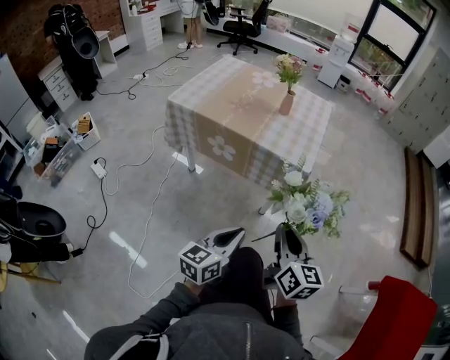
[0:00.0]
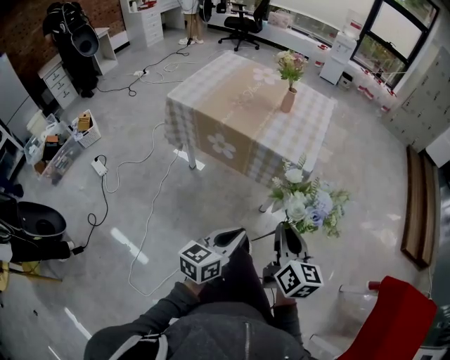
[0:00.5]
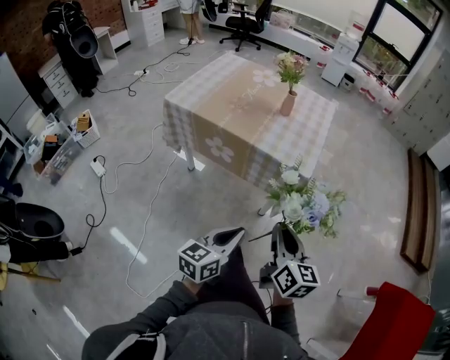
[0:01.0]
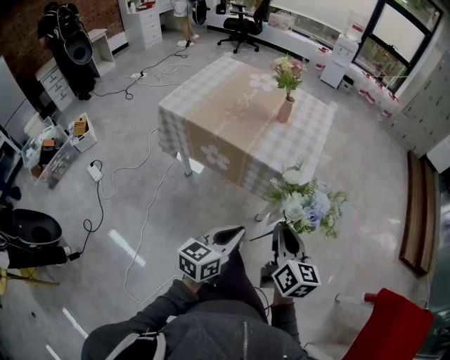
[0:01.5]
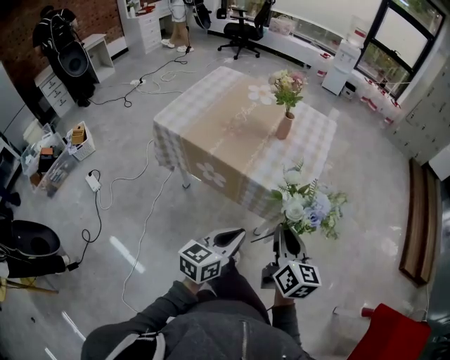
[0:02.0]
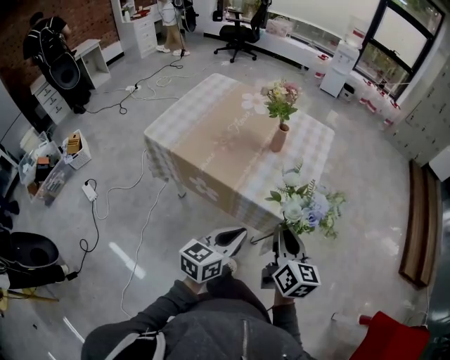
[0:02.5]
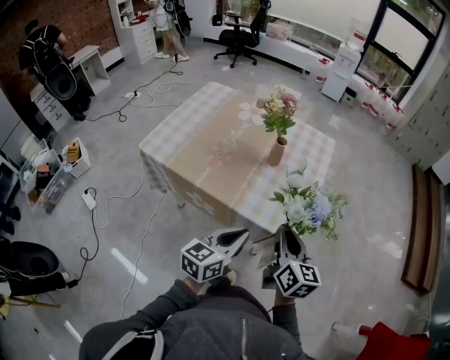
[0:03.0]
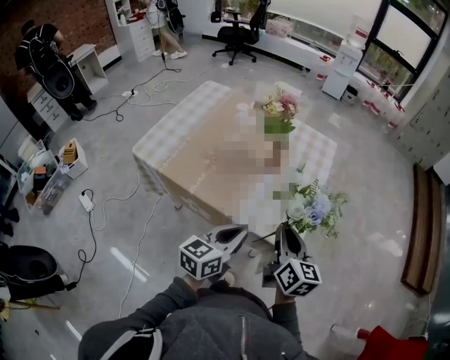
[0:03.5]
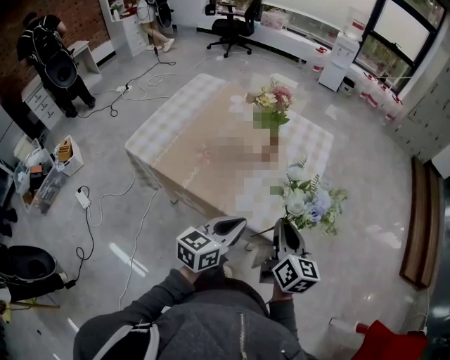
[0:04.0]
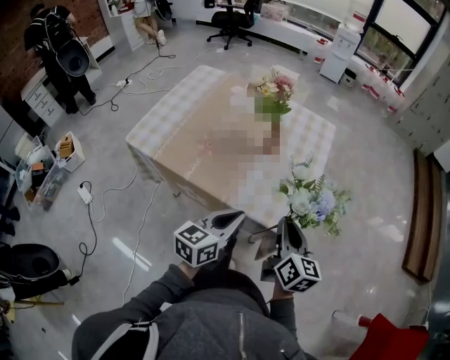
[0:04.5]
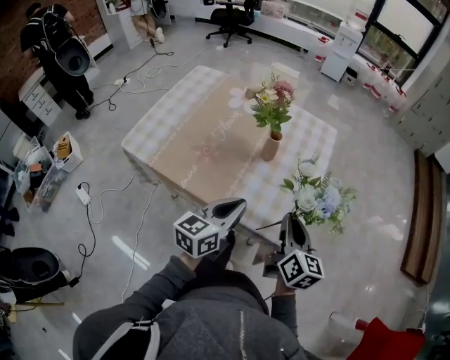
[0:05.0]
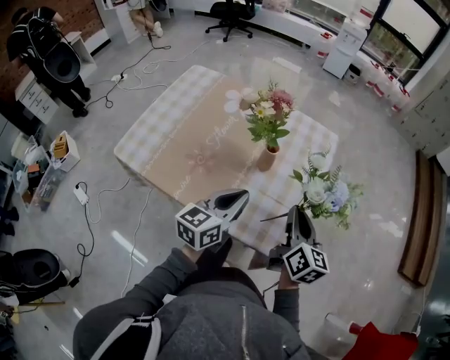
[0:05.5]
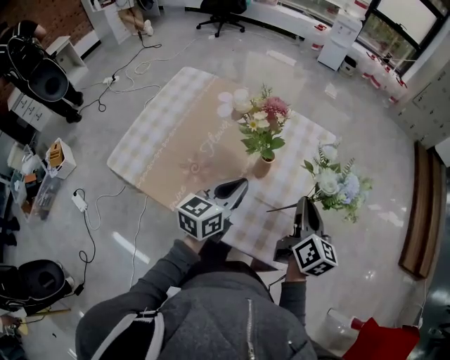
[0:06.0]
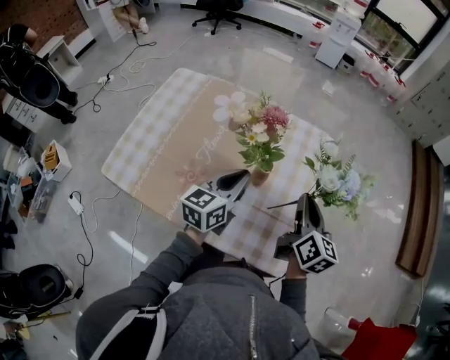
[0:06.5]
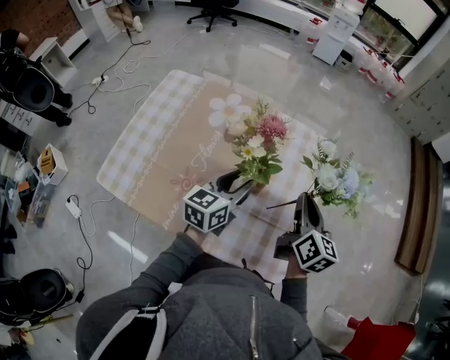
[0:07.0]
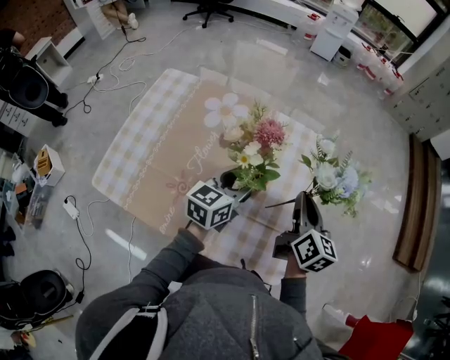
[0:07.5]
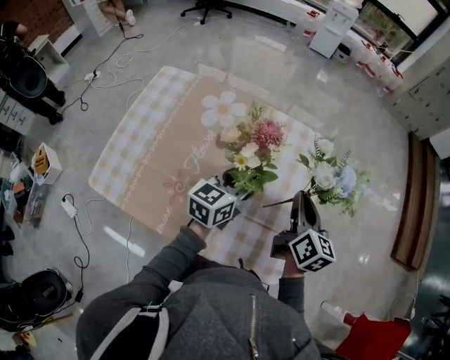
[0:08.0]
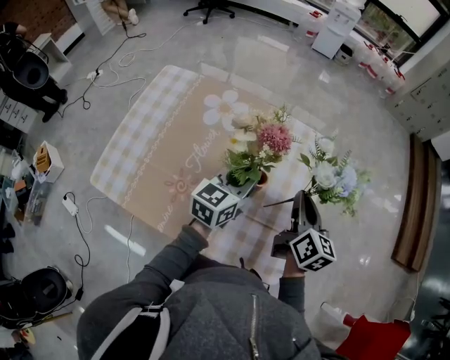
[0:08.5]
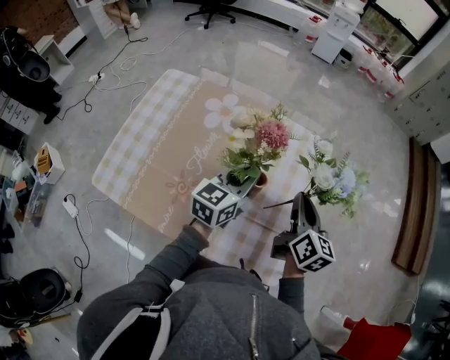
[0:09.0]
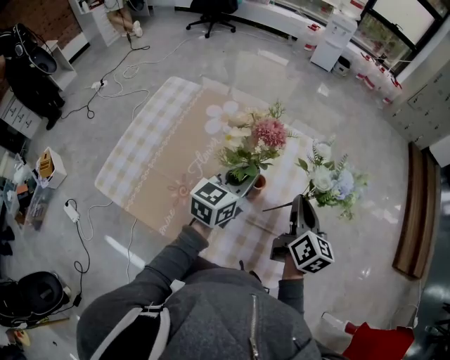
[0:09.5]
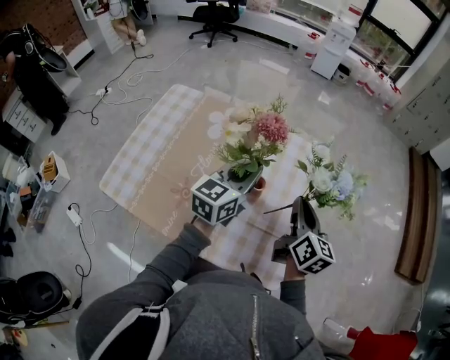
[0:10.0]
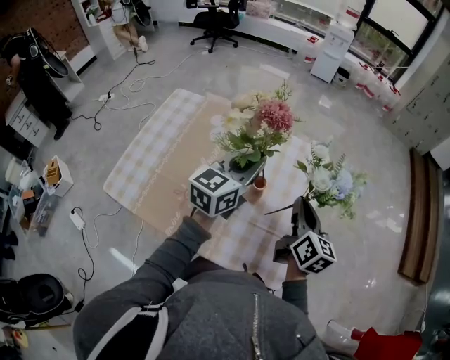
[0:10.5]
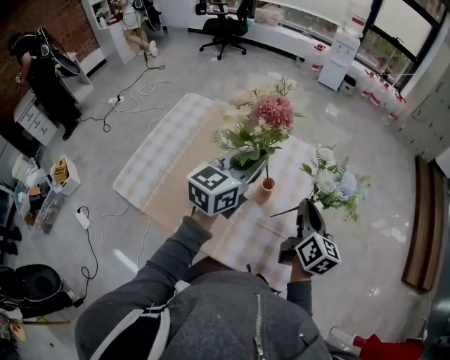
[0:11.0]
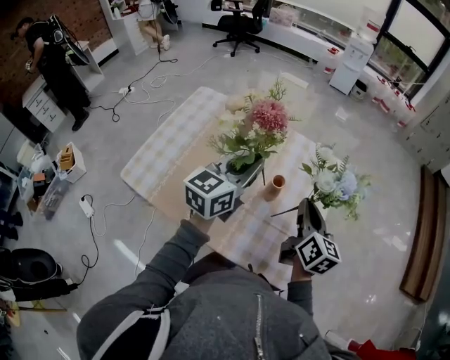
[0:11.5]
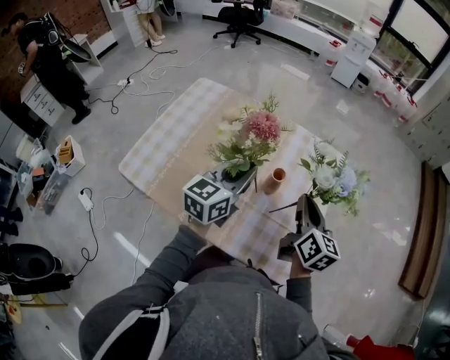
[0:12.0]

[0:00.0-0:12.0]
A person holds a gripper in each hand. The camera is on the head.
0:00.0 to 0:02.0: Both grippers travel together forward, approximately 15 cm.
0:02.0 to 0:04.0: Both grippers move forward, about 20 cm.
0:04.0 to 0:06.0: Both grippers travel together forward, roughly 20 cm.
0:06.0 to 0:08.0: The two grippers go approximately 10 cm forward. The left gripper opens its fingers.
0:08.0 to 0:10.0: The left gripper shifts approximately 5 cm upward, and closes its fingers.
0:10.0 to 0:12.0: The left gripper moves backward and to the left, roughly 10 cm, and reaches roughly 10 cm upward, then returns.

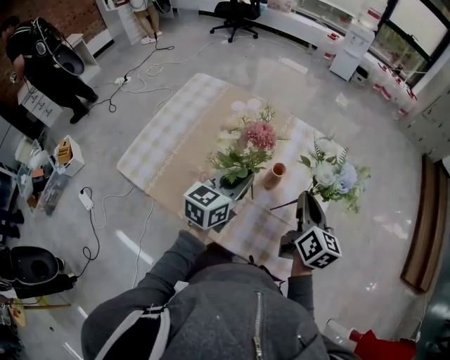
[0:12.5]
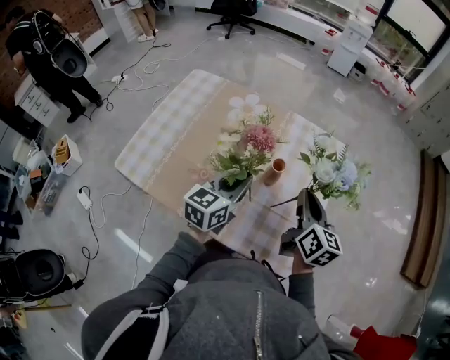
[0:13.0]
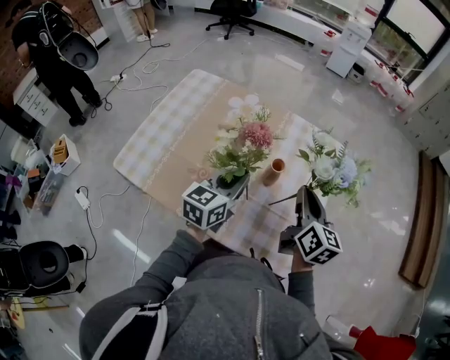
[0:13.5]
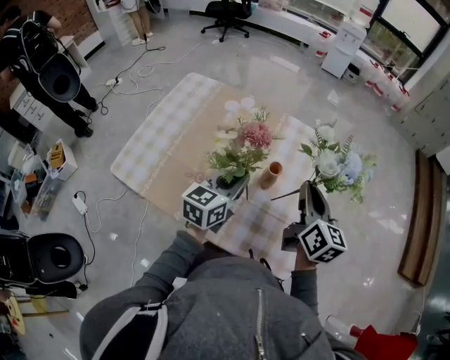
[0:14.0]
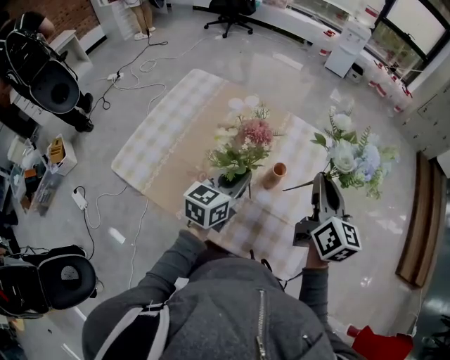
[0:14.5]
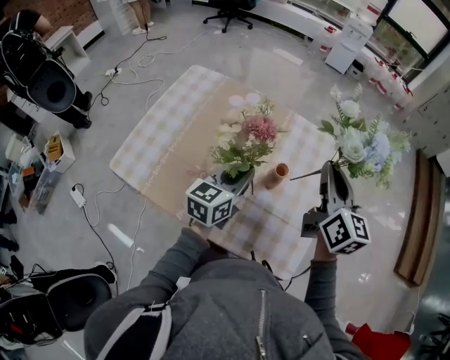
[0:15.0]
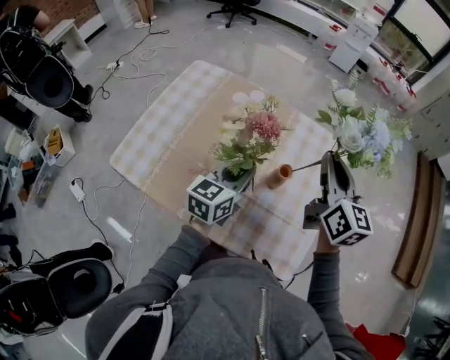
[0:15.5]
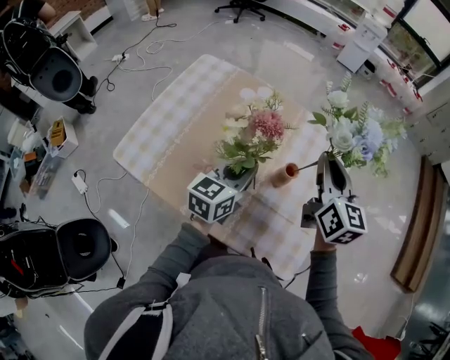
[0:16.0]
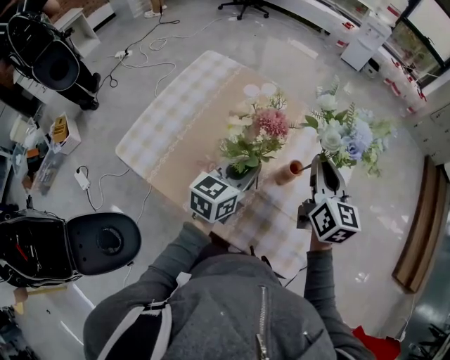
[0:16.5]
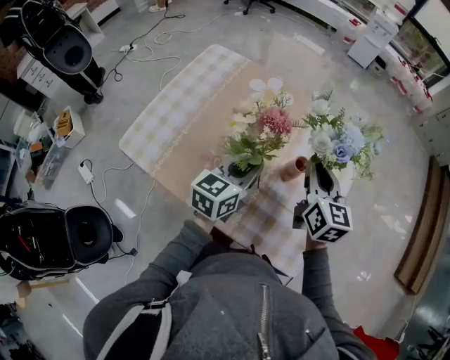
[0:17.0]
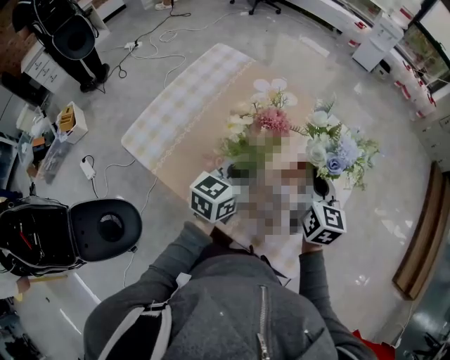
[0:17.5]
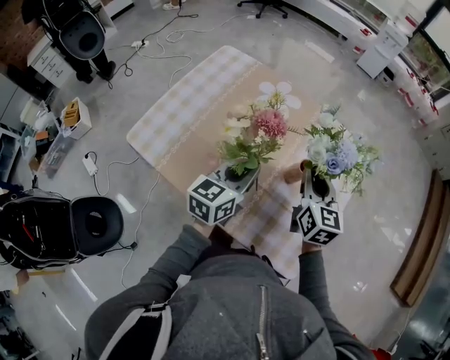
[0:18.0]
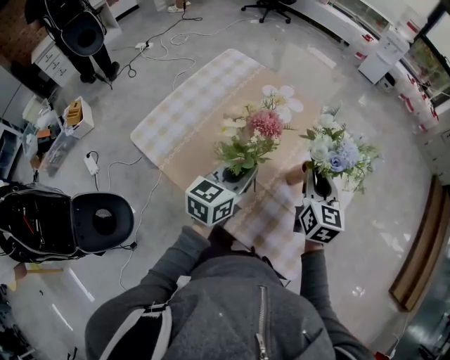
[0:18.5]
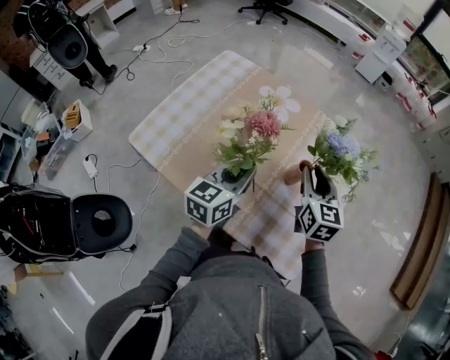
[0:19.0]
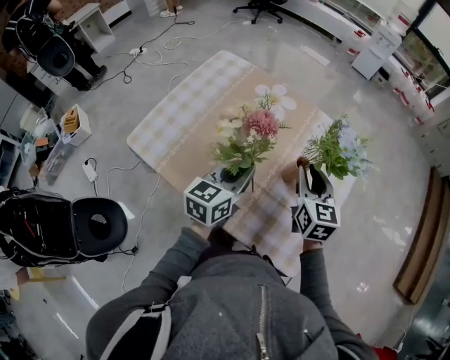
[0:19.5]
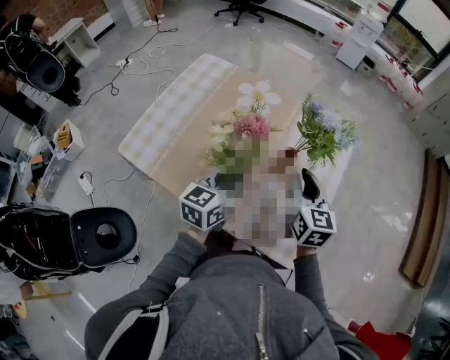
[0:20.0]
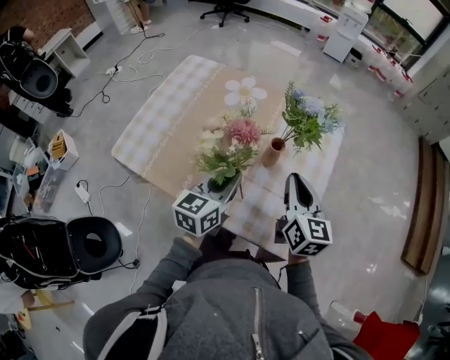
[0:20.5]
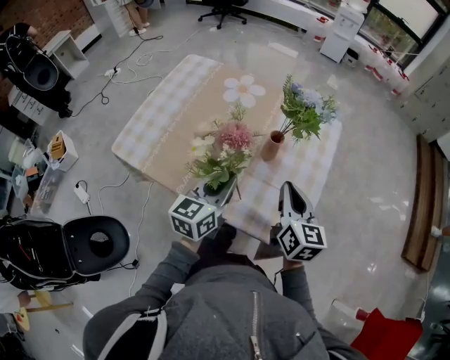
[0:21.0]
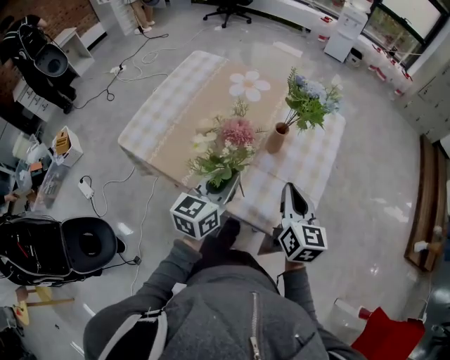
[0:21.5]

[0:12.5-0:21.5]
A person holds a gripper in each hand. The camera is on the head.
0:12.5 to 0:14.5: The right gripper shifts some 10 cm upward.
0:14.5 to 0:17.0: The right gripper heads to the left and downward, covering some 10 cm.
0:17.0 to 0:19.5: The grippers make only small movements.
0:19.5 to 0:21.5: The right gripper goes some 15 cm backward, while the left gripper travels backward by roughly 10 cm.

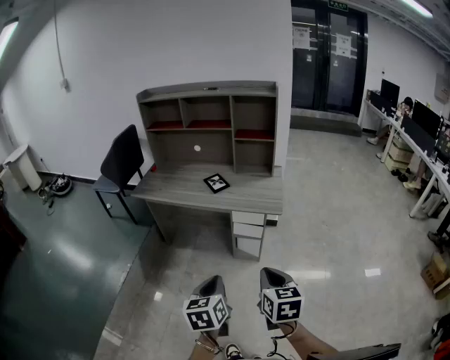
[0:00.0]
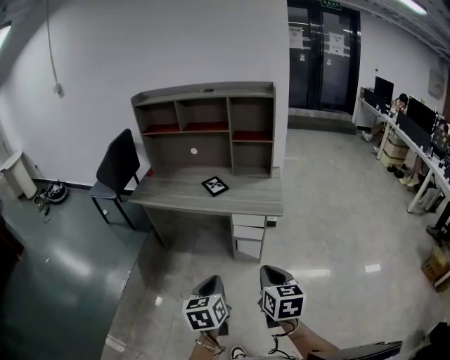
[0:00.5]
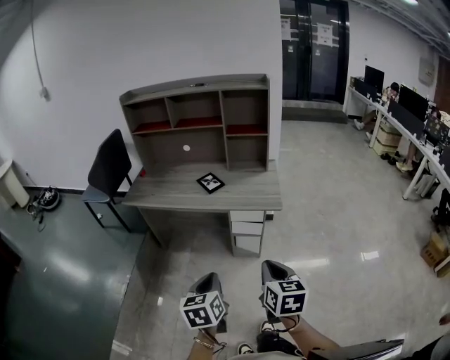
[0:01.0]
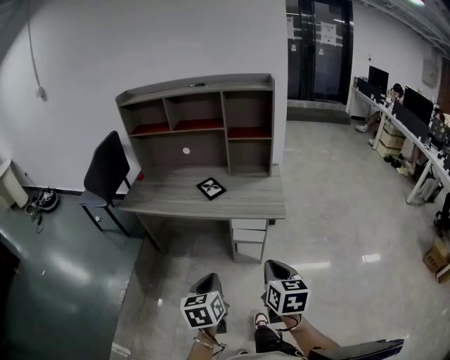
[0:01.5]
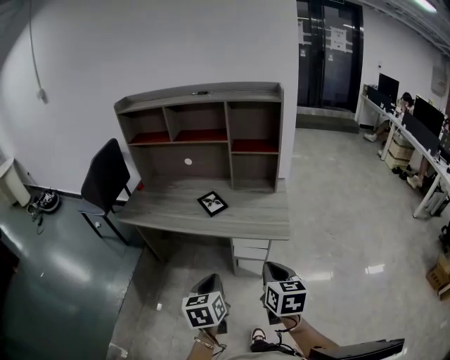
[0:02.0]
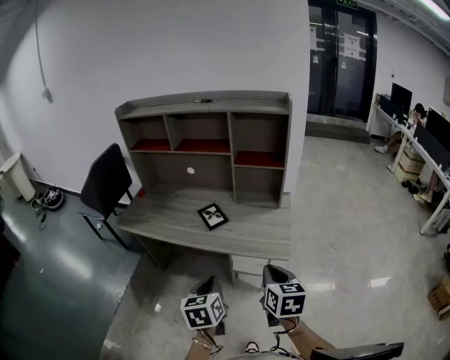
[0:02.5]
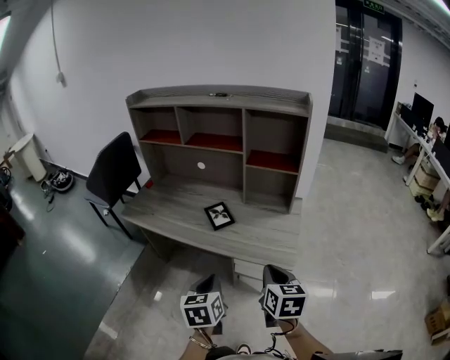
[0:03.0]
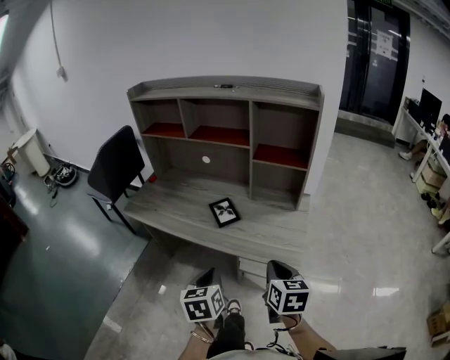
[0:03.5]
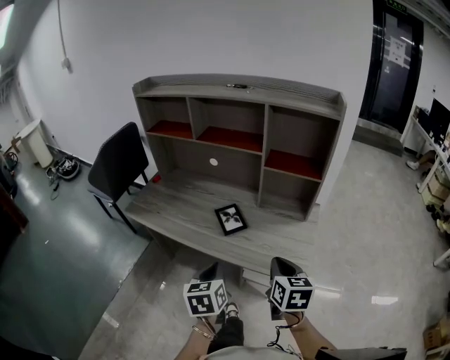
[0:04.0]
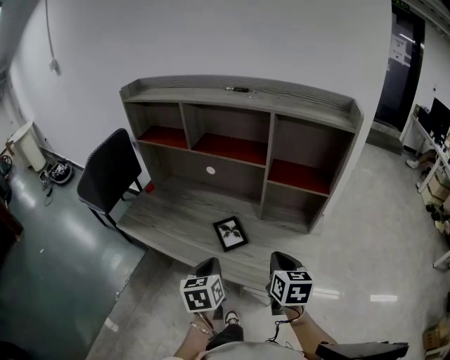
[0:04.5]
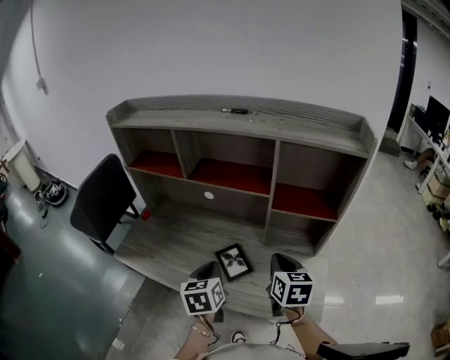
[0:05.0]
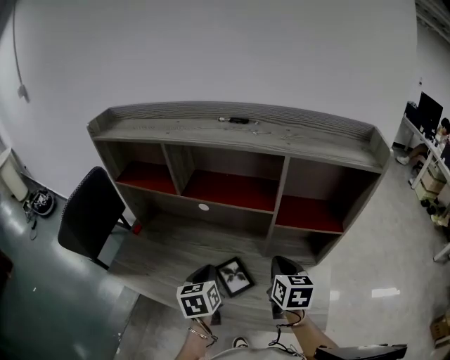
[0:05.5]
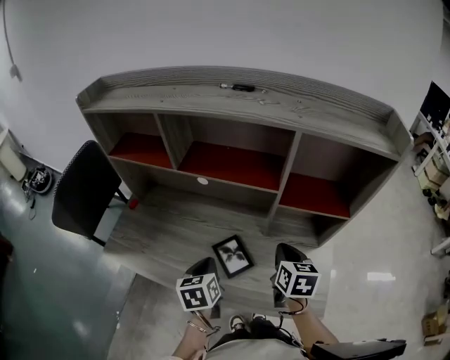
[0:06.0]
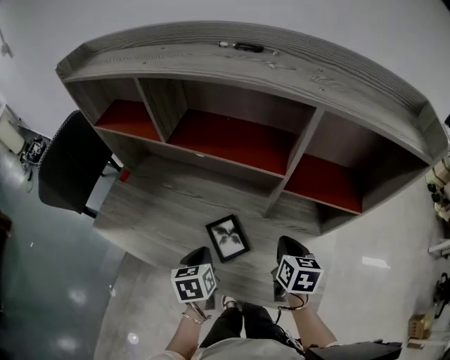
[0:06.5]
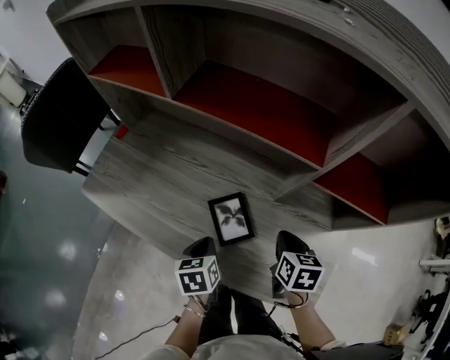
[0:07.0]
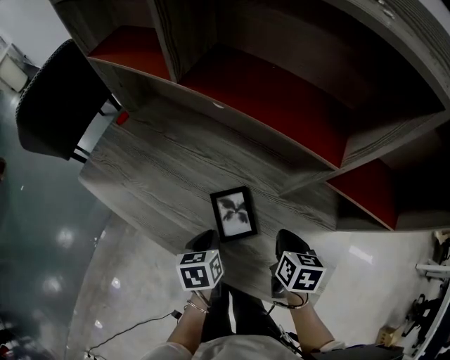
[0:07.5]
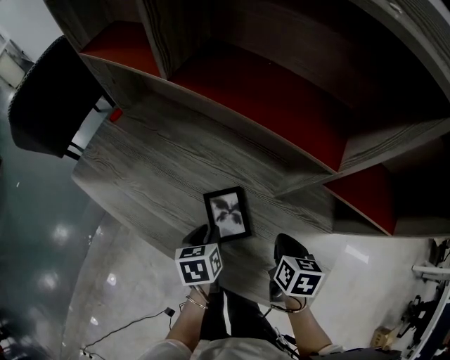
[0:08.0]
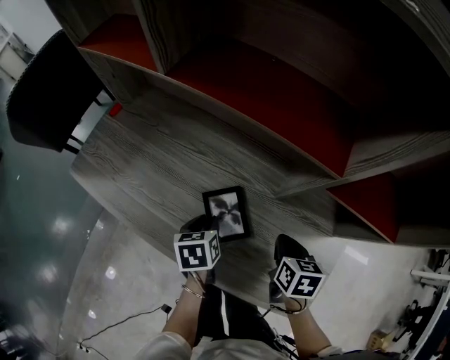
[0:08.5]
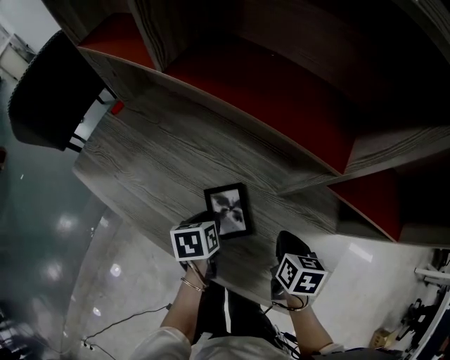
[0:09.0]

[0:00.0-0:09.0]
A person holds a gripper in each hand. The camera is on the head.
0:00.0 to 0:02.0: The two grippers go some 20 cm forward.
0:02.0 to 0:04.5: Both grippers travel together forward, roughly 30 cm.
0:04.5 to 0:07.0: The right gripper is displaced forward and downward by some 25 cm, and changes its angle by about 20 degrees. Meanwhile the left gripper is displaced downward and forward by roughly 20 cm, and rotates some 20 degrees.
0:07.0 to 0:09.0: The left gripper shifts roughly 5 cm forward, and opens.
